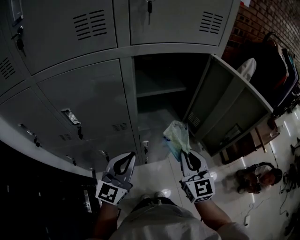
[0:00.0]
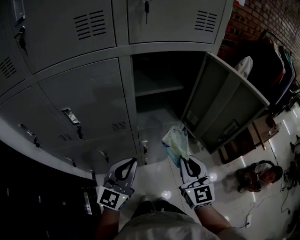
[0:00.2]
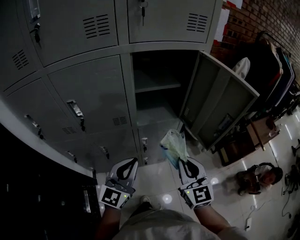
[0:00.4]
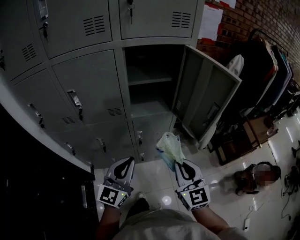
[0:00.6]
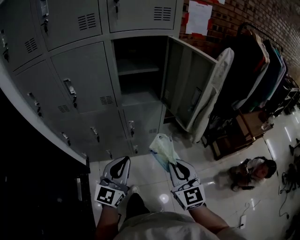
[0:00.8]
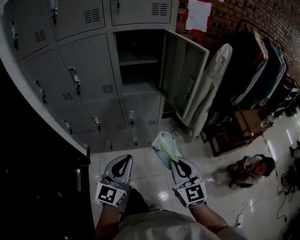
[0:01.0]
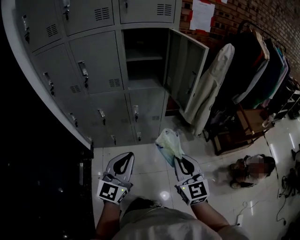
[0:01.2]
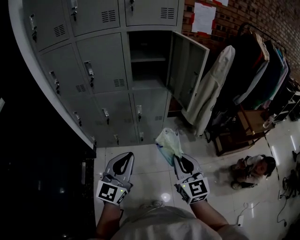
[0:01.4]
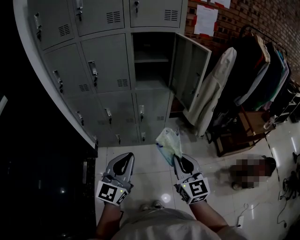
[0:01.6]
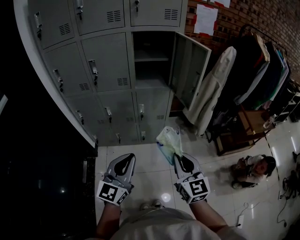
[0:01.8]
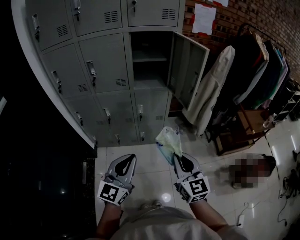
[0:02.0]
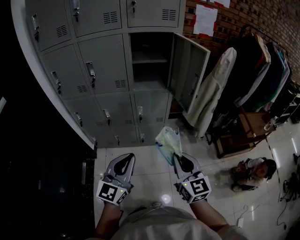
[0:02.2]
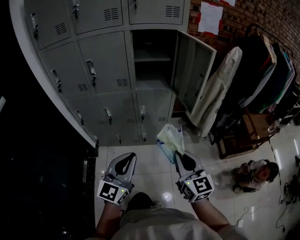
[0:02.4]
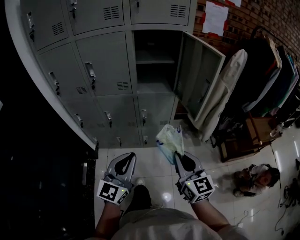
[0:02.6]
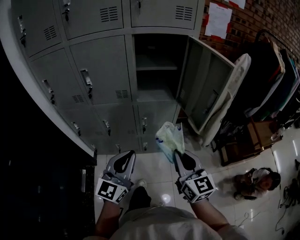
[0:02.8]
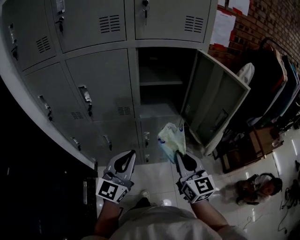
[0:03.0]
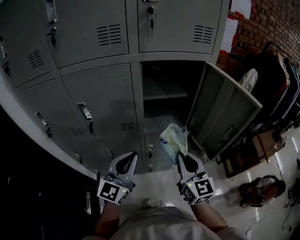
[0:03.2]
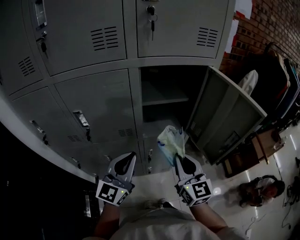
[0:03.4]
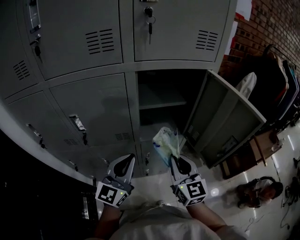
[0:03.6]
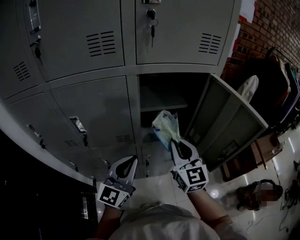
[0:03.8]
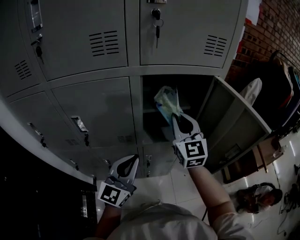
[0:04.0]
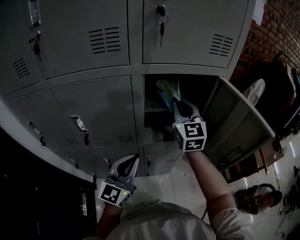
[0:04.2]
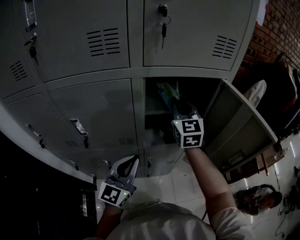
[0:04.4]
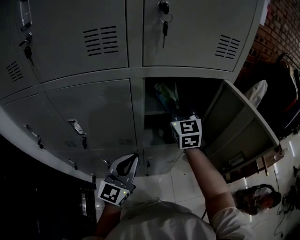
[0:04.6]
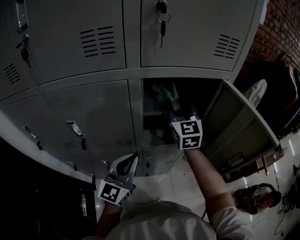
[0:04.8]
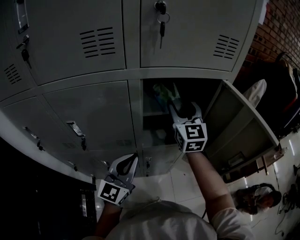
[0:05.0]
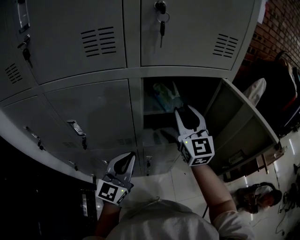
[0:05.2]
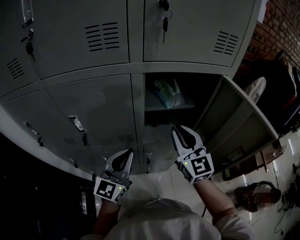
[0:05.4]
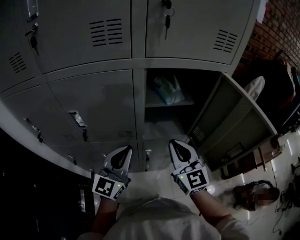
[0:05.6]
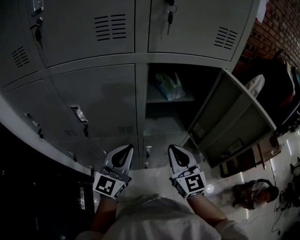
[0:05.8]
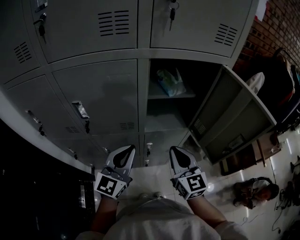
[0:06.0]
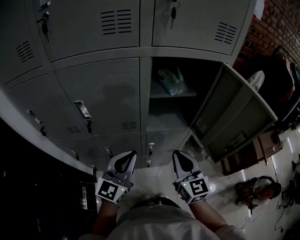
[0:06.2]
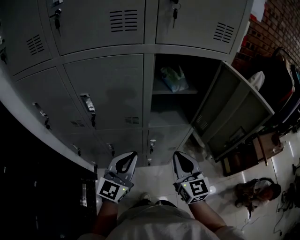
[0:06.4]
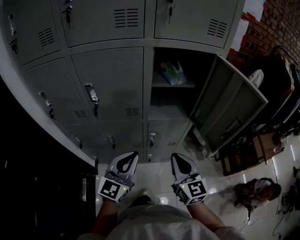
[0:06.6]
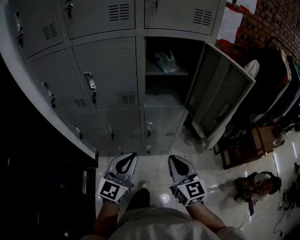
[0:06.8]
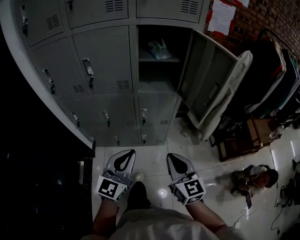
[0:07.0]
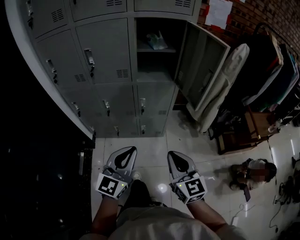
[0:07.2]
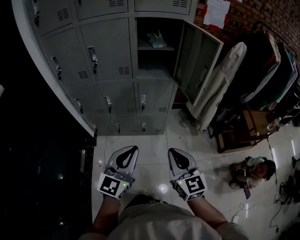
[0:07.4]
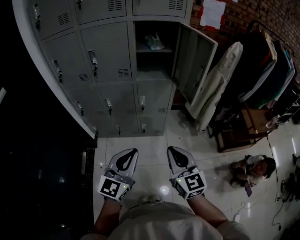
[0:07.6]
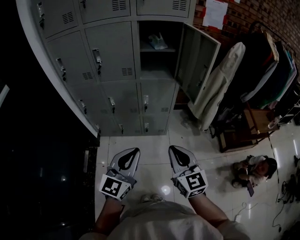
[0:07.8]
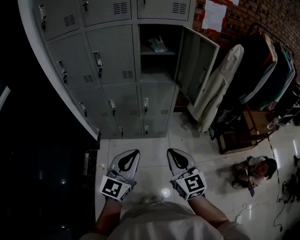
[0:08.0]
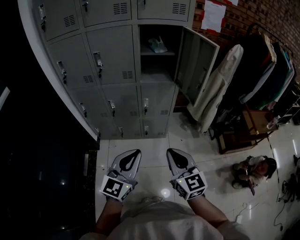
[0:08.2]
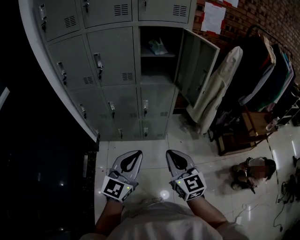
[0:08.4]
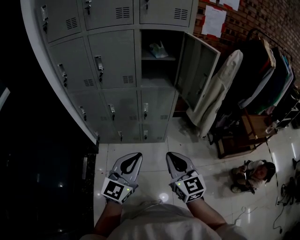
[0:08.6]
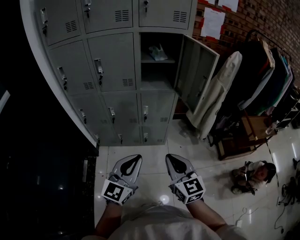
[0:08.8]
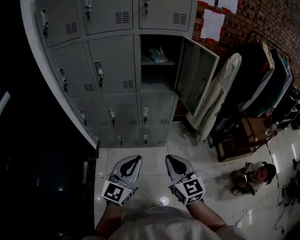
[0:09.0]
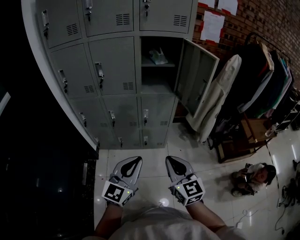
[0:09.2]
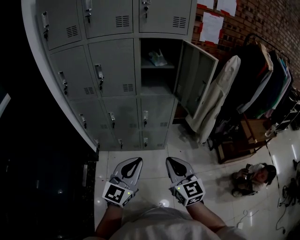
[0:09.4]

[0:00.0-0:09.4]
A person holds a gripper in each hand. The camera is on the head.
0:00.0 to 0:01.6: Both grippers travel together backward, roughly 35 cm.
0:01.6 to 0:03.2: The grippers both shift forward by about 30 cm.
0:03.2 to 0:04.8: The right gripper goes about 30 cm forward, and opens up; the left gripper moves forward, approximately 10 cm.
0:04.8 to 0:06.2: The left gripper goes approximately 5 cm backward, while the right gripper moves backward and downward, about 25 cm, and closes its fingers.
0:06.2 to 0:07.8: The two grippers go roughly 35 cm backward.
0:07.8 to 0:09.4: The grippers stay close to where they were, moving slightly.

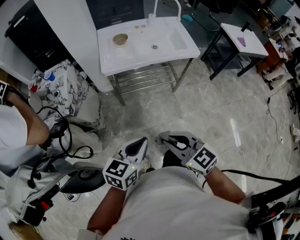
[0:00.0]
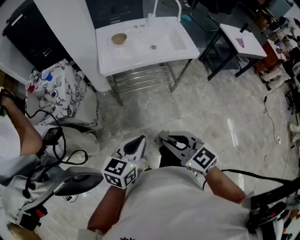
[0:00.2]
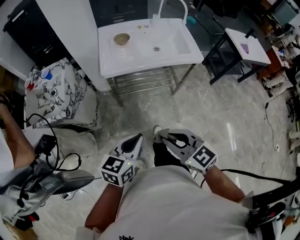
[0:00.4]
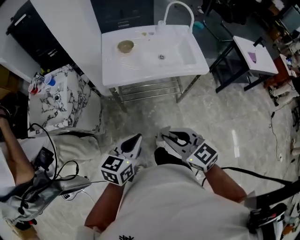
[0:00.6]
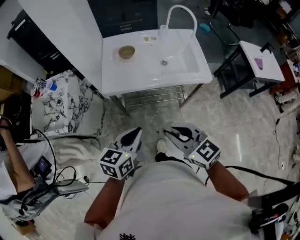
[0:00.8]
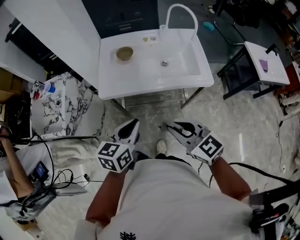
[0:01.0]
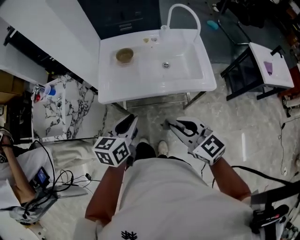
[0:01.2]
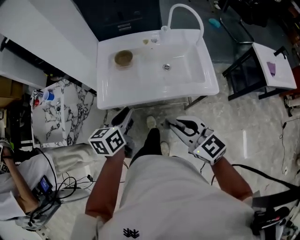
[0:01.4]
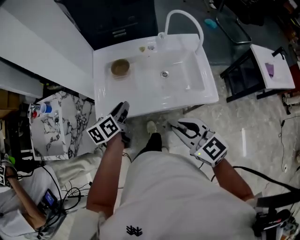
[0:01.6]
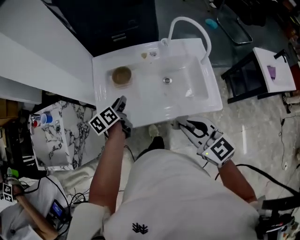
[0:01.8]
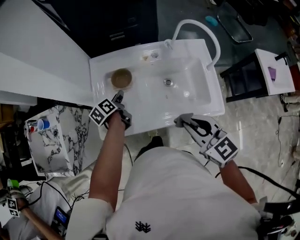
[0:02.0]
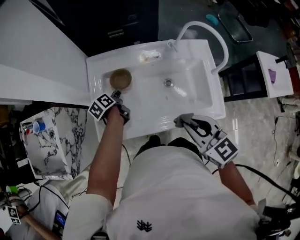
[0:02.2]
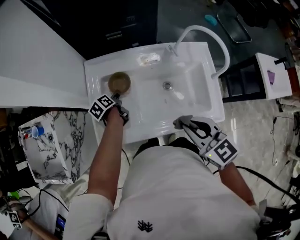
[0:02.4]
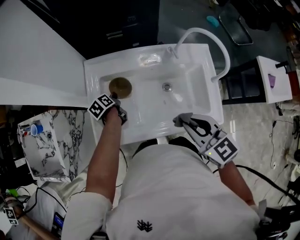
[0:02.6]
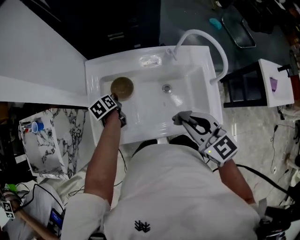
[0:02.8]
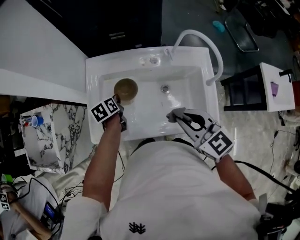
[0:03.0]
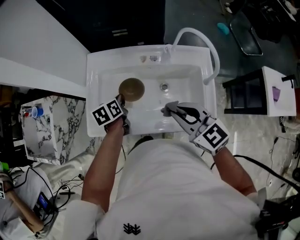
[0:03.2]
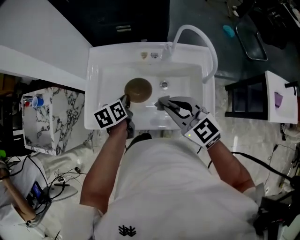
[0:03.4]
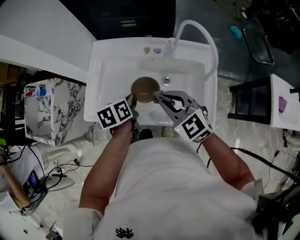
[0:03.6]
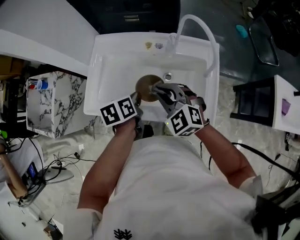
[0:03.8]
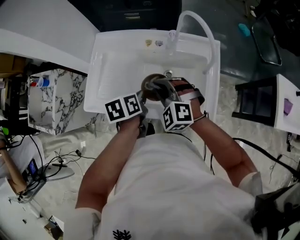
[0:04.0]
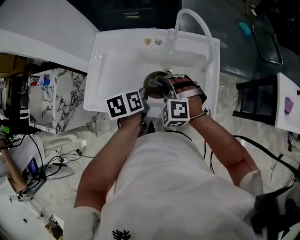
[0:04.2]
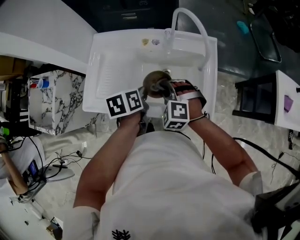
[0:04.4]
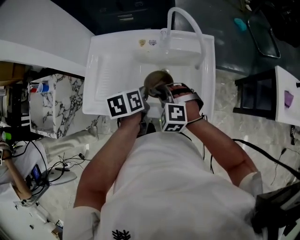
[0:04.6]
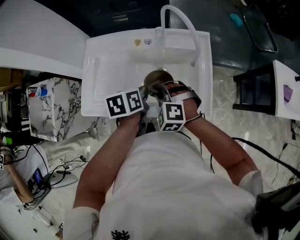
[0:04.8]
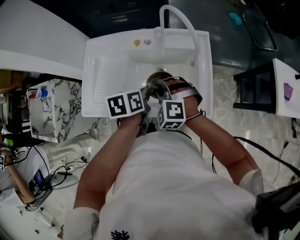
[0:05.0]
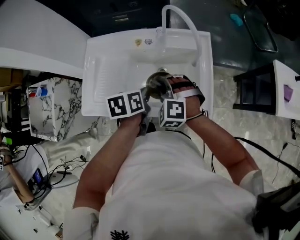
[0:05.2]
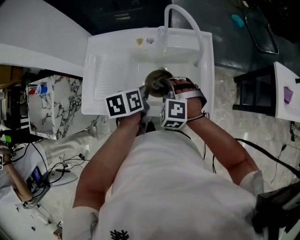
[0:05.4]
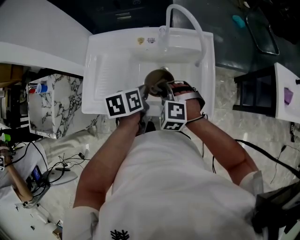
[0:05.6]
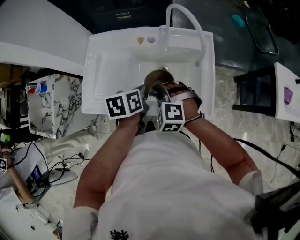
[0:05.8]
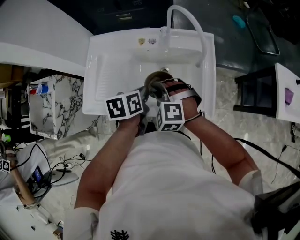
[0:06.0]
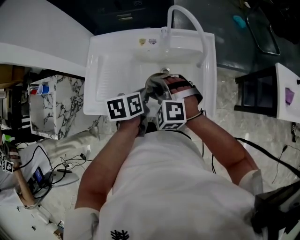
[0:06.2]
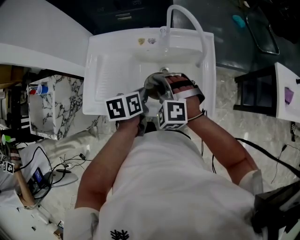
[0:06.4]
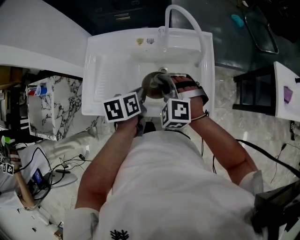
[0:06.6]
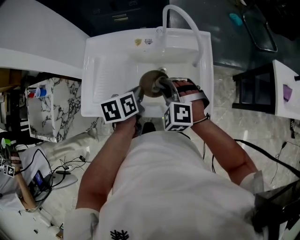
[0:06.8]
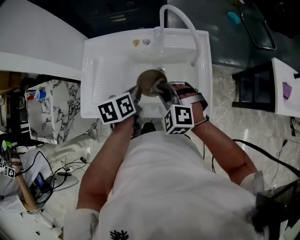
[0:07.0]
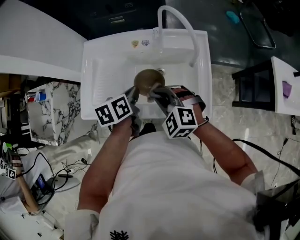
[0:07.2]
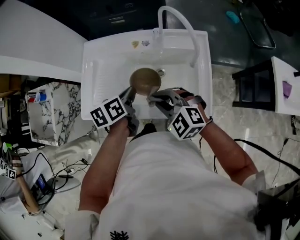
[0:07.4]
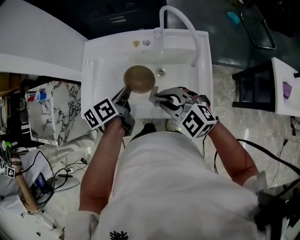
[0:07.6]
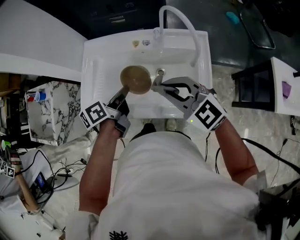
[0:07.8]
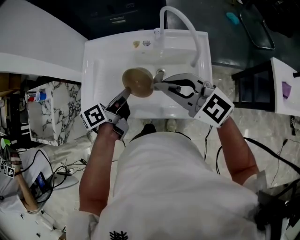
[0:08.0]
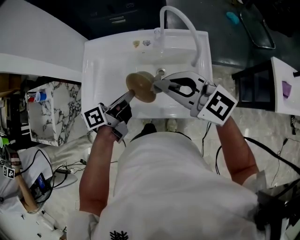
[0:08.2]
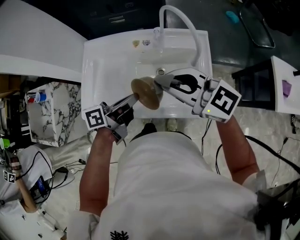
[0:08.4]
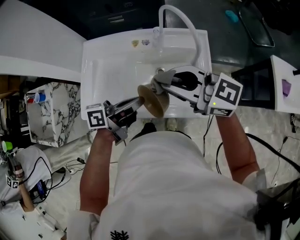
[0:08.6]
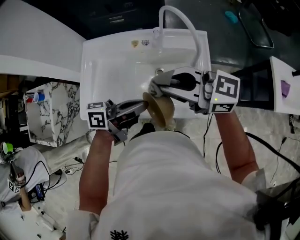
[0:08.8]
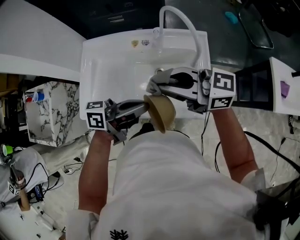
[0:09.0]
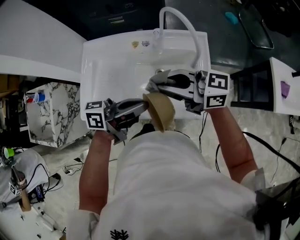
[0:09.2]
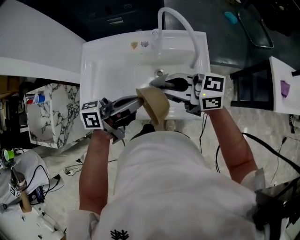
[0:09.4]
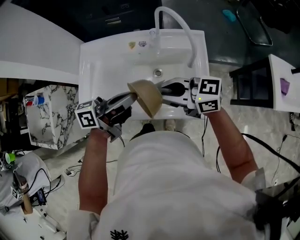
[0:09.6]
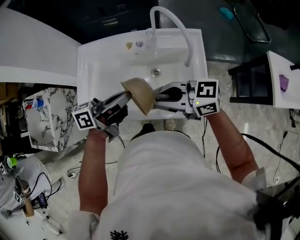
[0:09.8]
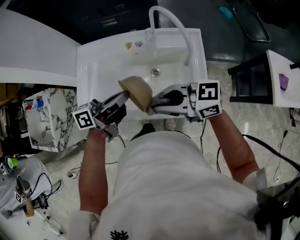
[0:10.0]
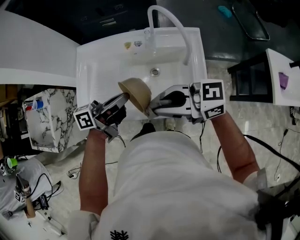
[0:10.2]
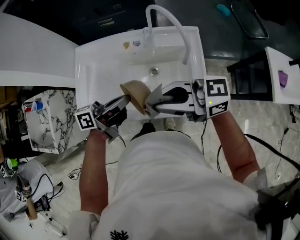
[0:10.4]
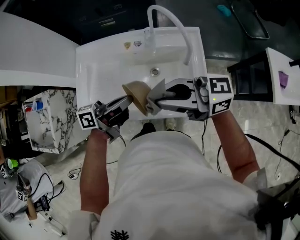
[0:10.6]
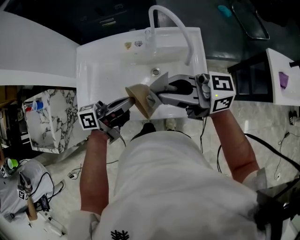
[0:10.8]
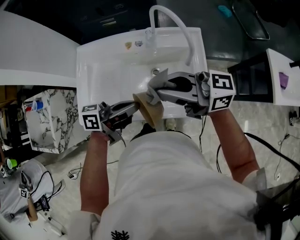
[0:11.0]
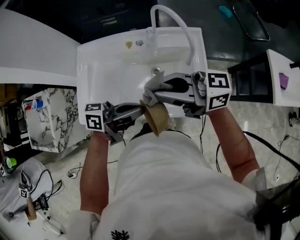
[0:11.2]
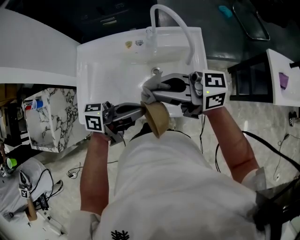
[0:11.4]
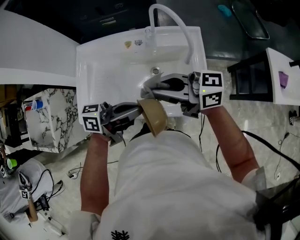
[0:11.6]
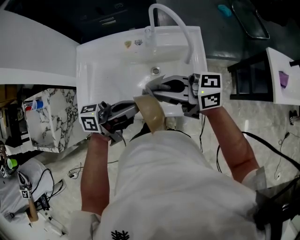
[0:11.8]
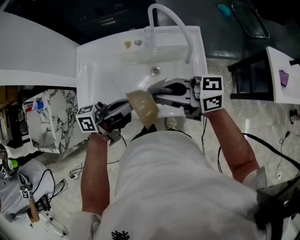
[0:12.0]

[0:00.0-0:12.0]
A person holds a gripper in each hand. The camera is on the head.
0:00.0 to 0:01.6: The two grippers travel together, forward, approximately 50 cm. The left gripper swivels about 40 degrees, and opens.
0:01.6 to 0:03.0: The left gripper travels forward and downward by some 20 cm, swivels approximately 20 degrees, and closes up; the right gripper shifts some 20 cm forward and to the right.
0:03.0 to 0:04.4: The right gripper moves downward, about 15 cm, and rotates around the line of its fingers by about 50 degrees, counterclockwise from behind. Meanwhile the left gripper is displaced to the right, backward and upward by about 25 cm.
0:04.4 to 0:06.0: The grippers stay close to where they were, moving slightly.
0:06.0 to 0:07.6: The right gripper heads upward, covering some 5 cm, and swivels about 30 degrees, while the left gripper shifts roughly 5 cm to the left, and swivels about 20 degrees.
0:07.6 to 0:09.0: The right gripper moves upward, some 10 cm, and angles its fingers upward, by roughly 30 degrees. Meanwhile the left gripper changes place by approximately 15 cm, and angles its fingers upward, by some 40 degrees.
0:09.0 to 0:10.4: The left gripper ends up roughly 5 cm from where it was.

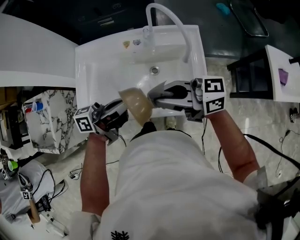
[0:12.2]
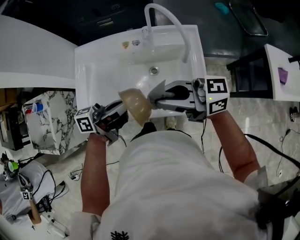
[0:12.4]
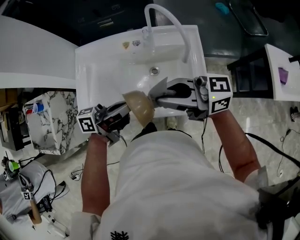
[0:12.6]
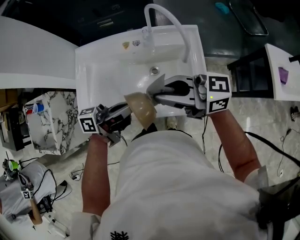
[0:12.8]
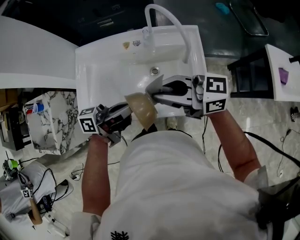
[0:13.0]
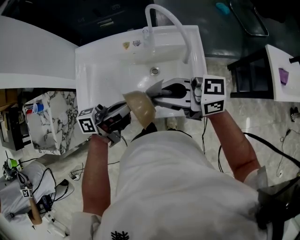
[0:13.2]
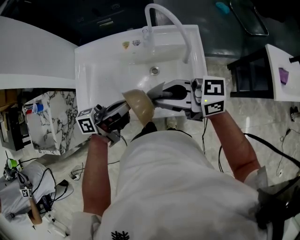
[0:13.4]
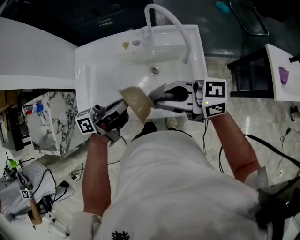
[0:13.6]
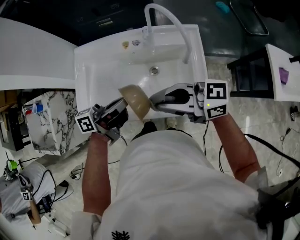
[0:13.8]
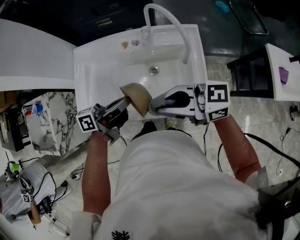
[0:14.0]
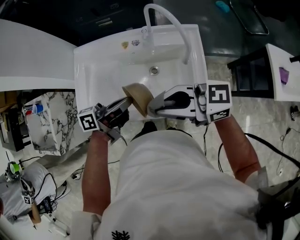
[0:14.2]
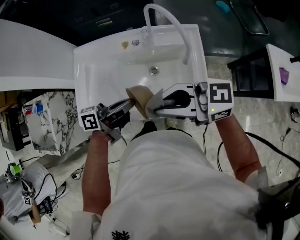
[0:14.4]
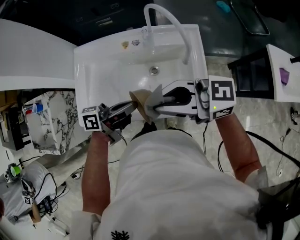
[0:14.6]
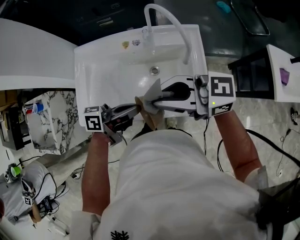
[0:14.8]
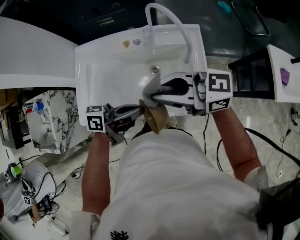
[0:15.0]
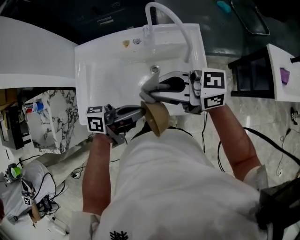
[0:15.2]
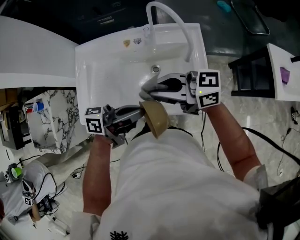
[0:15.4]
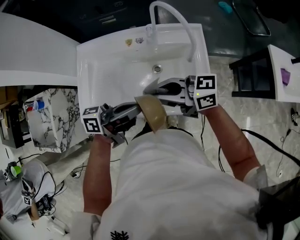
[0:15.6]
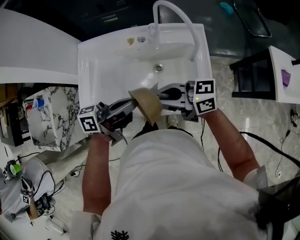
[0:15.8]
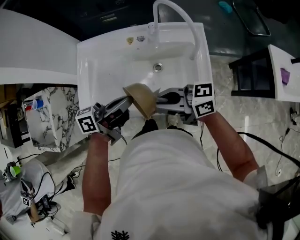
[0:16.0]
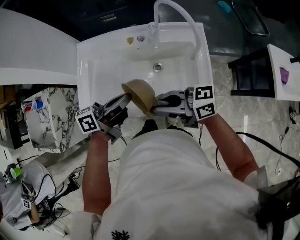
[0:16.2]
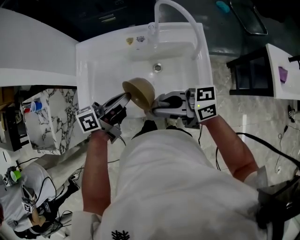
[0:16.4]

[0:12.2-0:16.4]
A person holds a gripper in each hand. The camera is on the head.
0:12.2 to 0:13.6: The grippers make only small movements.
0:13.6 to 0:15.0: The left gripper changes place by some 5 cm.
0:15.0 to 0:16.4: The left gripper shifts by some 10 cm, while the right gripper heads downward, covering roughly 10 cm.
